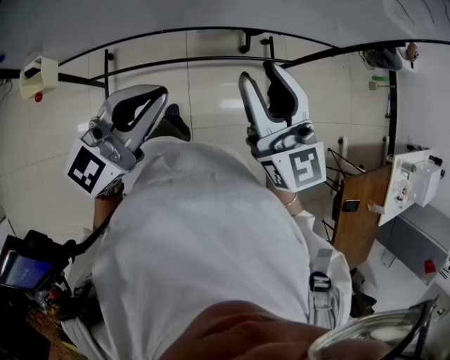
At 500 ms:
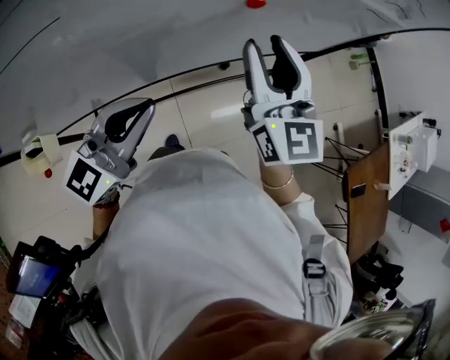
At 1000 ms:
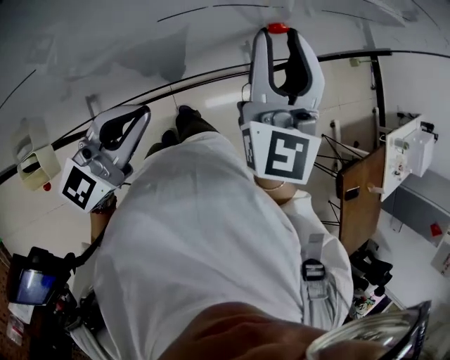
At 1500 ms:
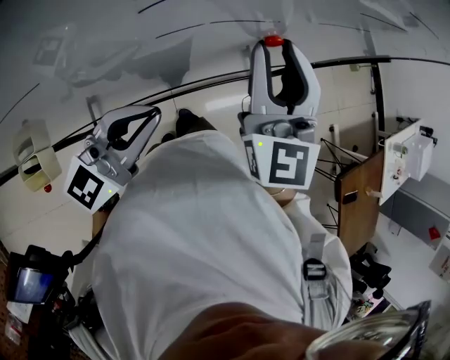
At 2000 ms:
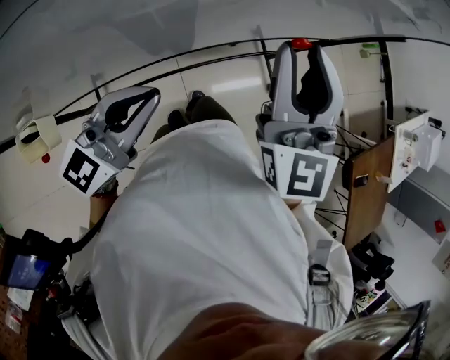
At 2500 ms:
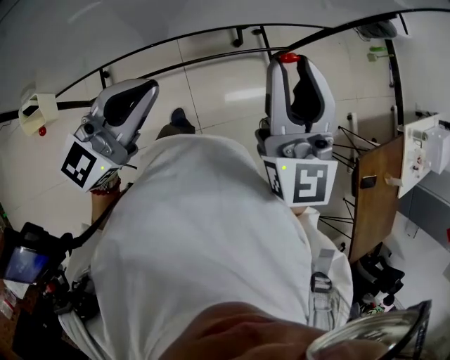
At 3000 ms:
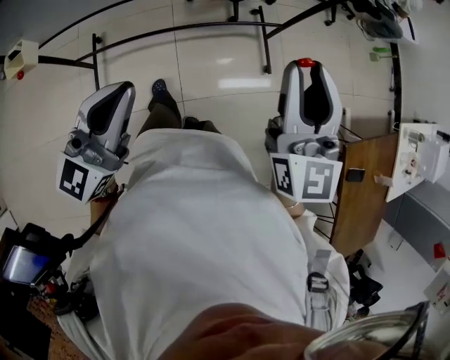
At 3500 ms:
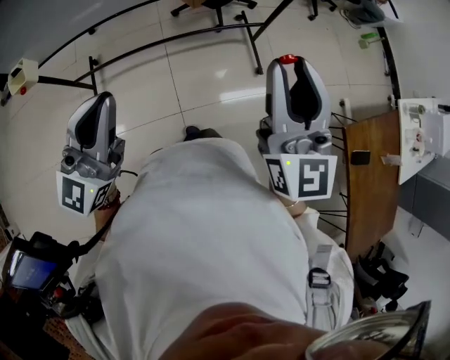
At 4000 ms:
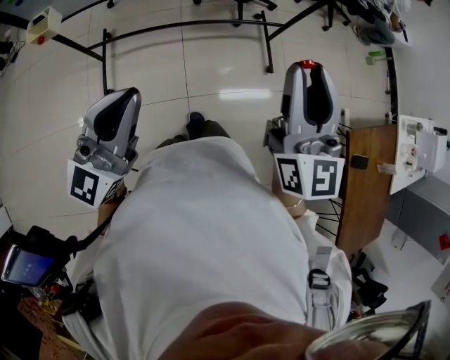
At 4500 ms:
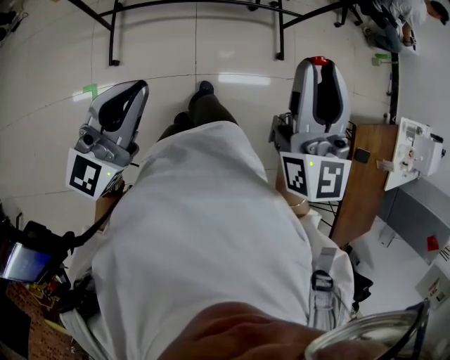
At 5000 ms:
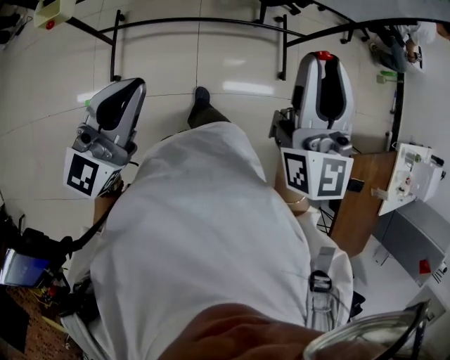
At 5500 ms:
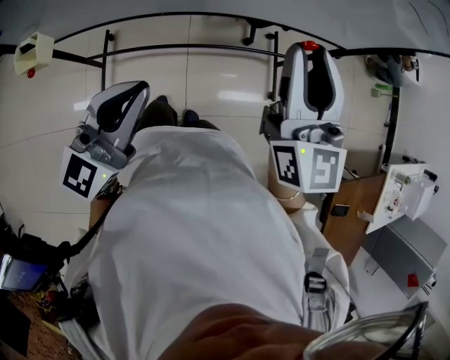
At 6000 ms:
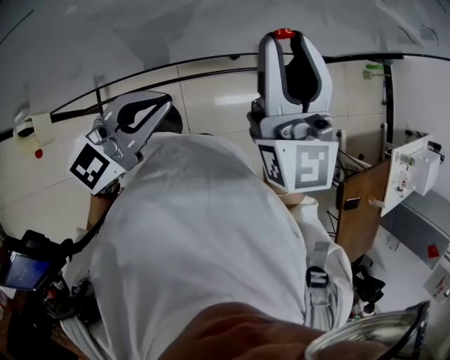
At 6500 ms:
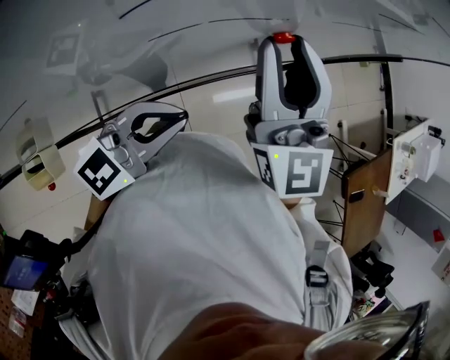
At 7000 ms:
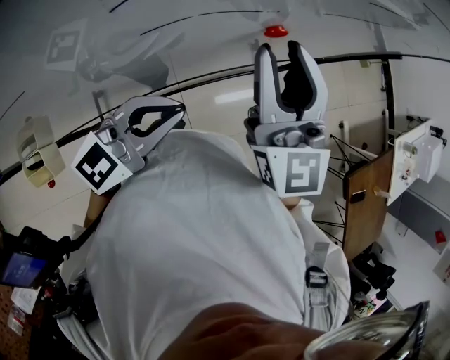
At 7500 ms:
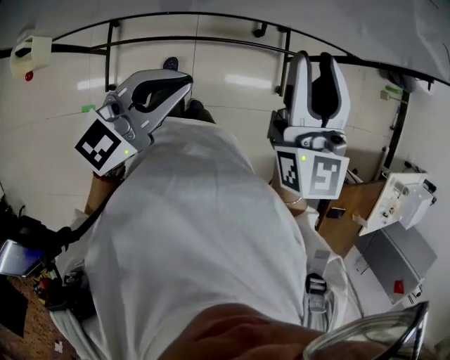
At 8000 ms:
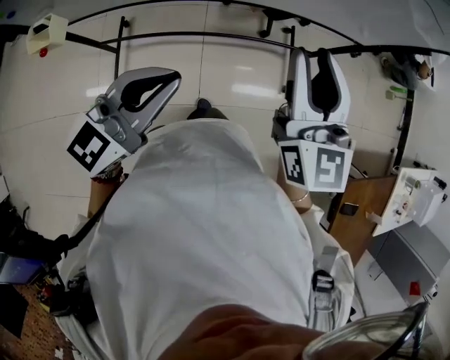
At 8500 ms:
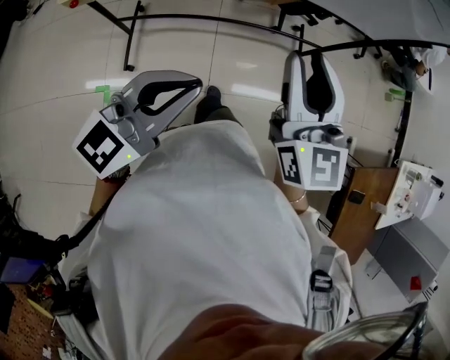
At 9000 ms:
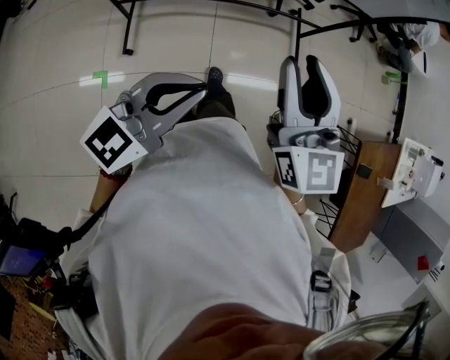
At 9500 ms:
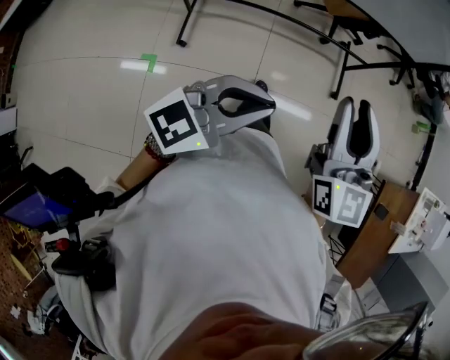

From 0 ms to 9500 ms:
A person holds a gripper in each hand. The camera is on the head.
From 0 ms to 2000 ms: The left gripper goes about 10 cm to the left and forward; the right gripper heads forward, upward and to the left, covering roughly 10 cm, and swivels roughly 30 degrees.
From 2000 ms to 4000 ms: The two grippers go about 35 cm backward and to the right. The left gripper turns by approximately 30 degrees.
From 4000 ms to 5500 ms: The grippers both shift forward by roughly 25 cm.
From 5500 ms to 7500 ms: The left gripper goes approximately 10 cm forward. Meanwhile the right gripper is displaced forward by roughly 5 cm.
From 7500 ms to 9500 ms: Both grippers travel together backward, about 40 cm.

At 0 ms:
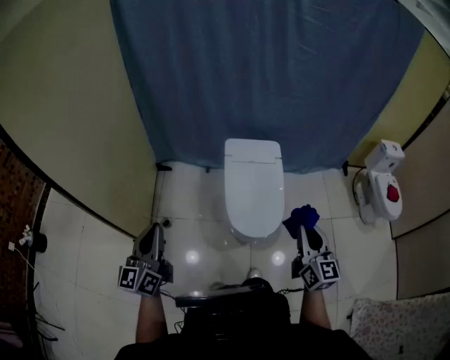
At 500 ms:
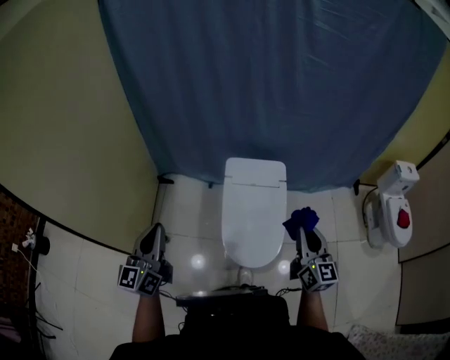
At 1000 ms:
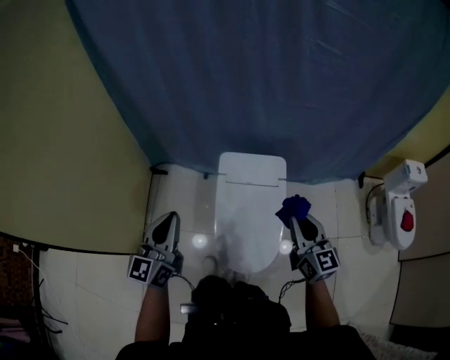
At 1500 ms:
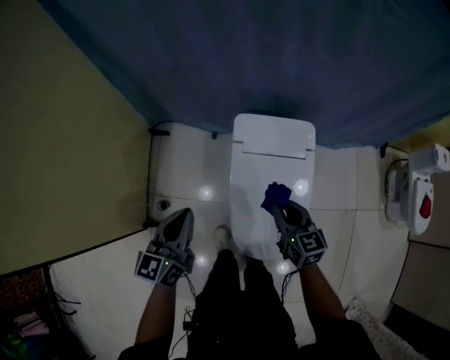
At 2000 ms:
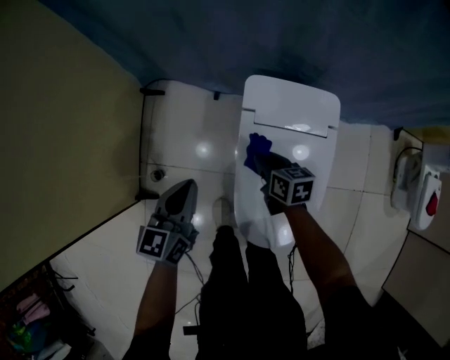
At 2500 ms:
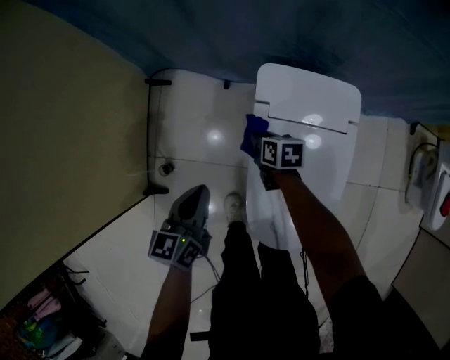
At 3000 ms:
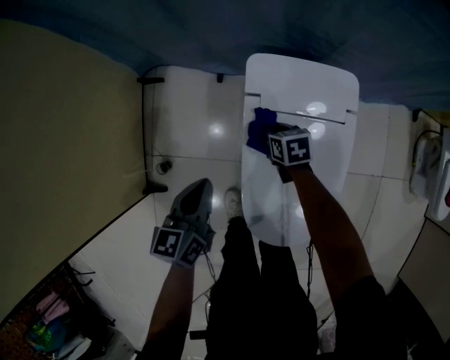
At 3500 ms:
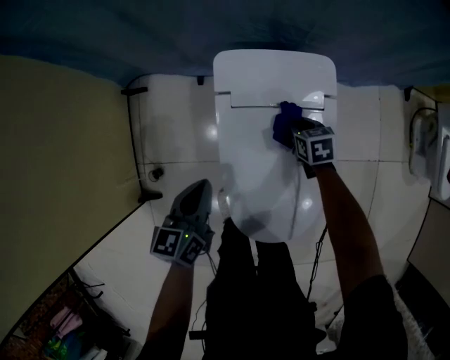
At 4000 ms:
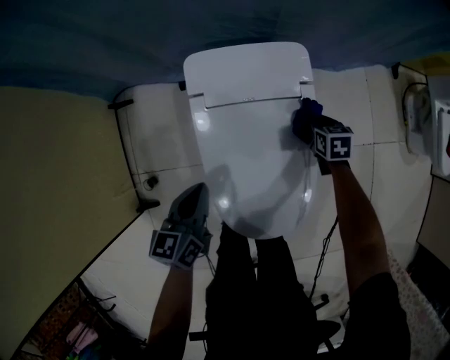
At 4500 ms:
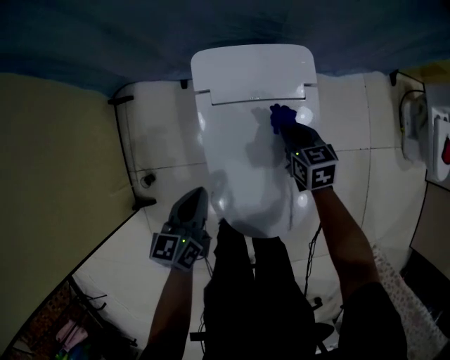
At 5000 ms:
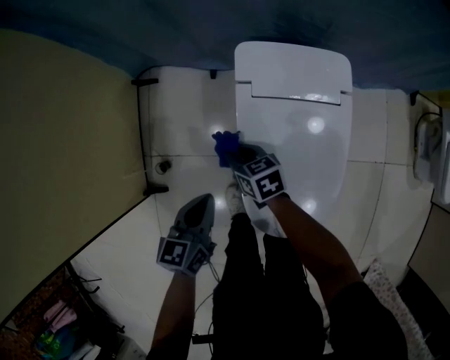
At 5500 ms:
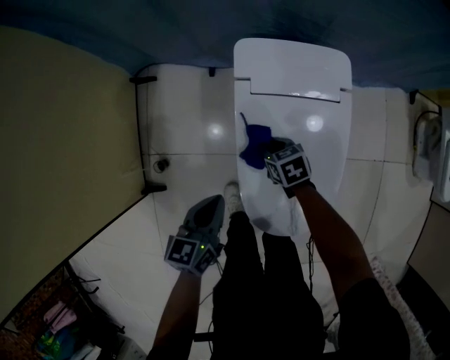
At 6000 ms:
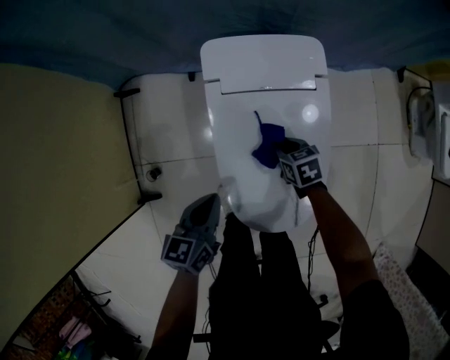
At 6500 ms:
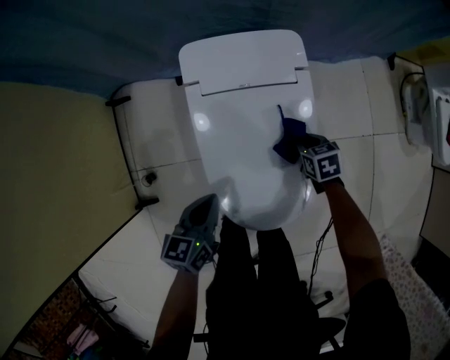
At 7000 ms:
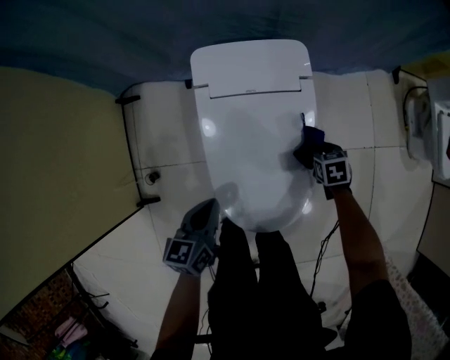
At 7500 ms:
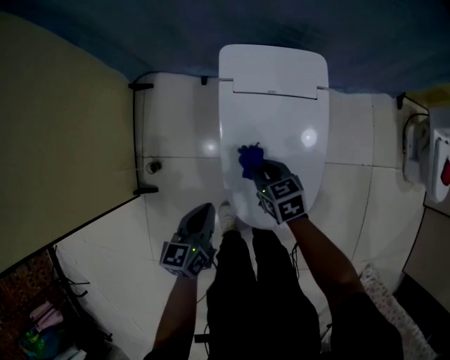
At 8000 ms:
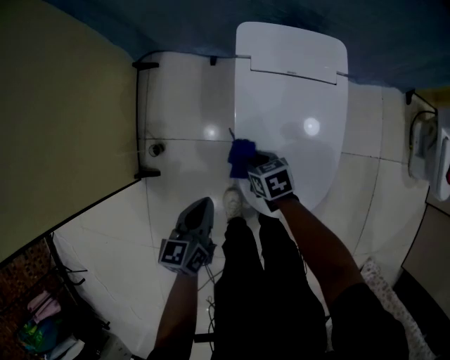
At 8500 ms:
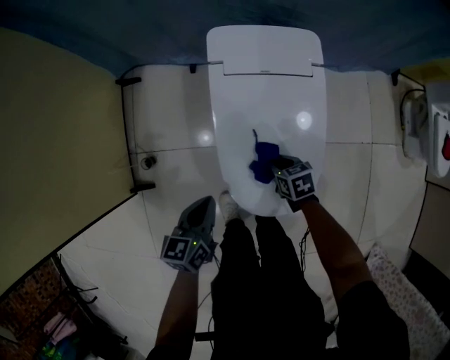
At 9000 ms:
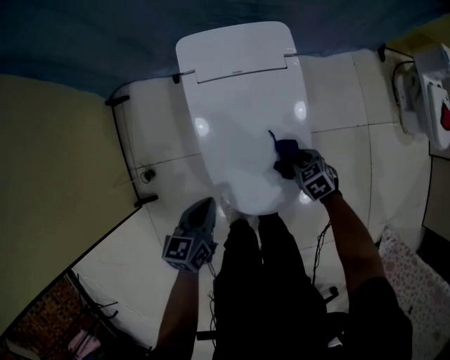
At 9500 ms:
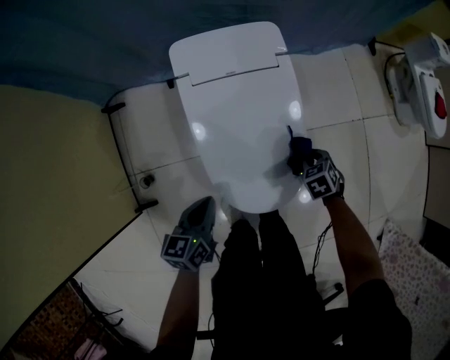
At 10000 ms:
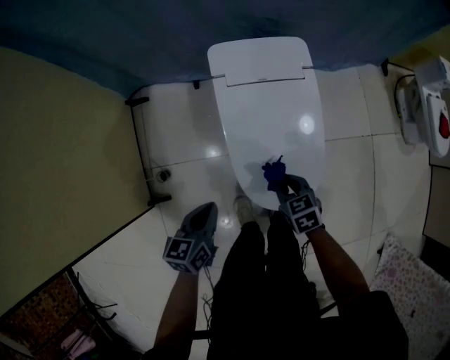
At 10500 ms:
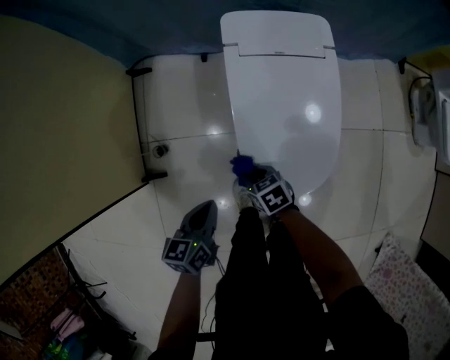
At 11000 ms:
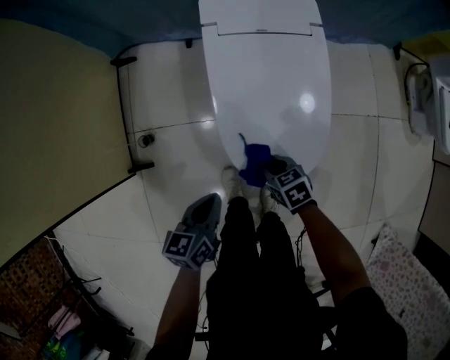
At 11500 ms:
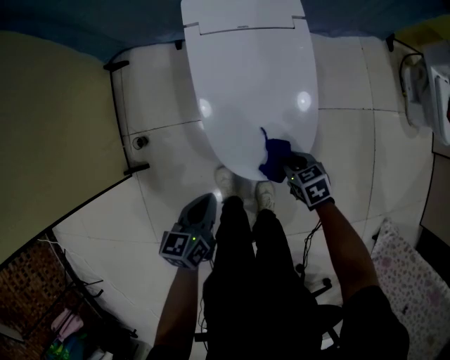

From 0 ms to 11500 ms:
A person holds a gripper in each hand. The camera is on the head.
From 0 ms to 2000 ms: Both grippers are carried forward, about 40 cm. Both grippers travel together downward, approximately 35 cm. The right gripper tilts its fingers approximately 40 degrees downward; the left gripper points its fingers some 30 degrees further downward.
From 2000 ms to 4000 ms: The right gripper moves about 35 cm, and turns by about 30 degrees, while the left gripper moves approximately 15 cm.
From 4000 ms to 6000 ms: The left gripper shifts by roughly 10 cm; the right gripper travels upward and back again, roughly 10 cm each way.
From 6000 ms to 7500 ms: The left gripper shifts approximately 10 cm backward. The right gripper goes about 10 cm upward and backward, and goes to the right and returns, roughly 20 cm each way.
From 7500 ms to 9500 ms: The right gripper ends up approximately 25 cm from where it was, and swivels approximately 40 degrees. The left gripper moves approximately 5 cm.
From 9500 ms to 11500 ms: The right gripper moves approximately 10 cm upward and comes back, and turns by about 30 degrees. The left gripper moves about 15 cm.

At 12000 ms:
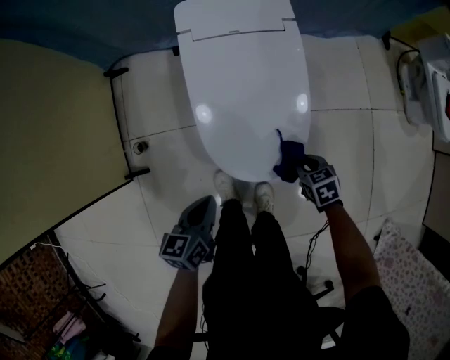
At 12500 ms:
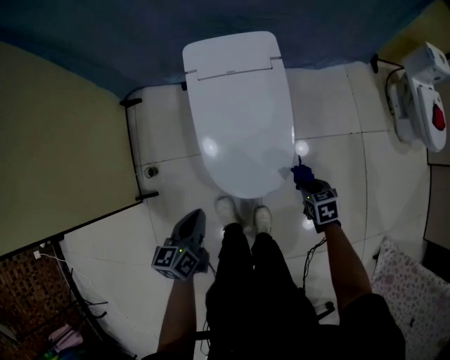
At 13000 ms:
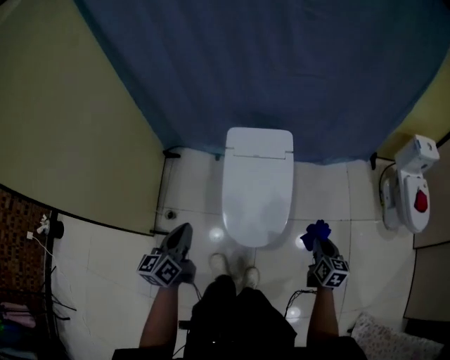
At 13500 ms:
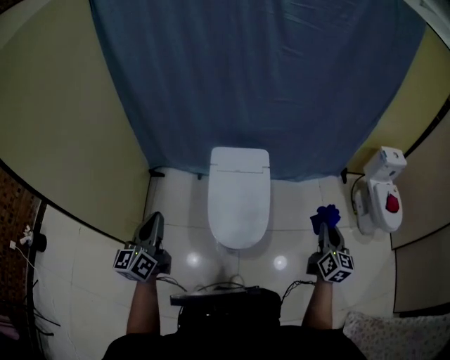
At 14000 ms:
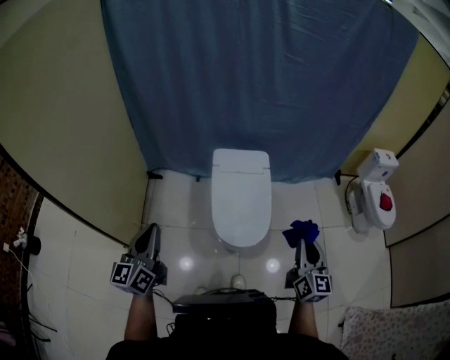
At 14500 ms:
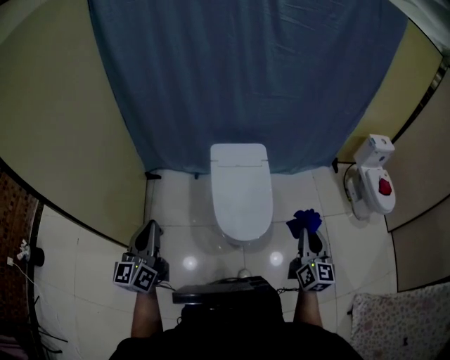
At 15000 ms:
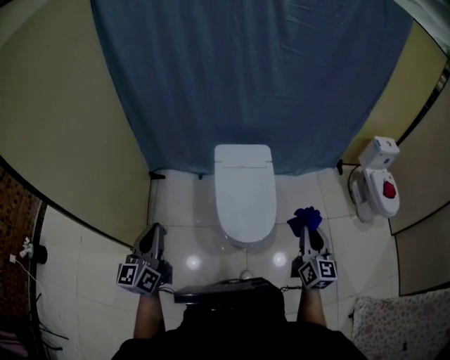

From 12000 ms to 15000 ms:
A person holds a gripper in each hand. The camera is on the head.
From 12000 ms to 13500 ms: Both grippers travel together upward, some 50 cm. The left gripper tilts its fingers roughly 40 degrees upward. Meanwhile the right gripper points its fingers roughly 60 degrees further upward.
From 13500 ms to 15000 ms: The left gripper shifts about 10 cm to the left and backward. Meanwhile the right gripper heads to the left and backward, covering approximately 15 cm.

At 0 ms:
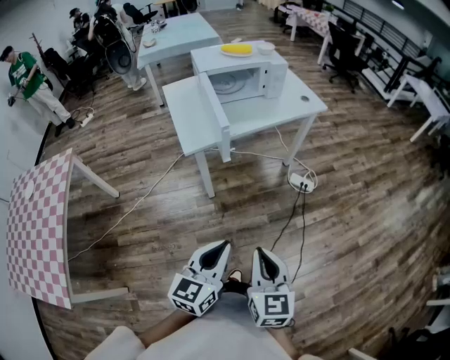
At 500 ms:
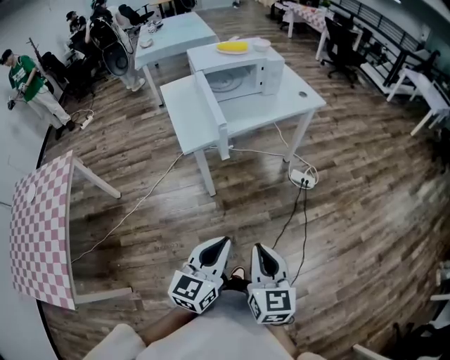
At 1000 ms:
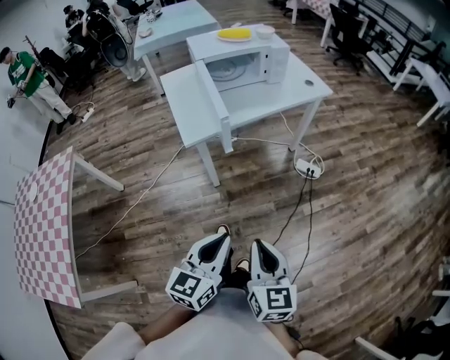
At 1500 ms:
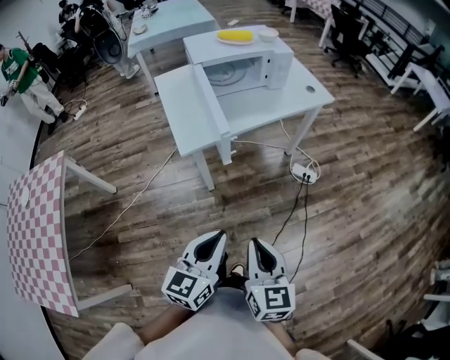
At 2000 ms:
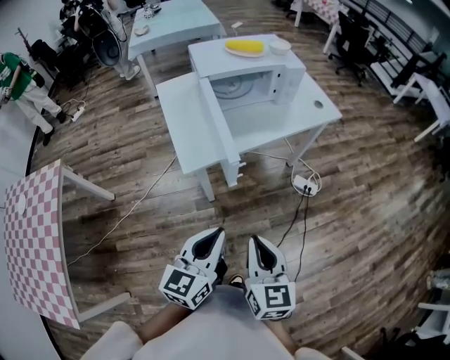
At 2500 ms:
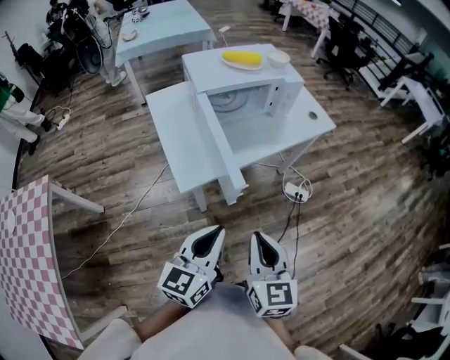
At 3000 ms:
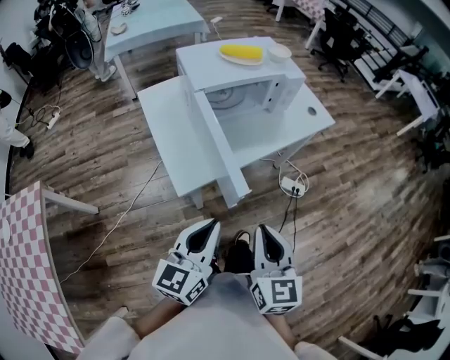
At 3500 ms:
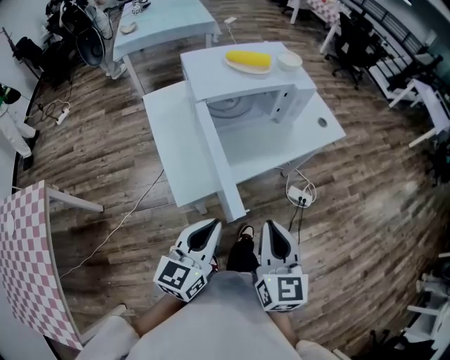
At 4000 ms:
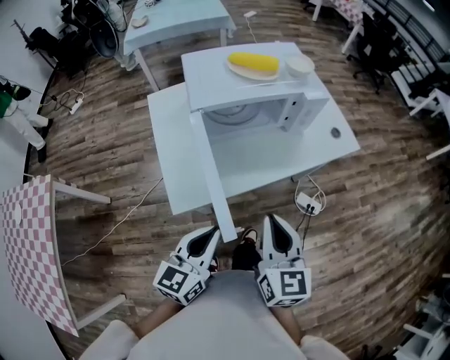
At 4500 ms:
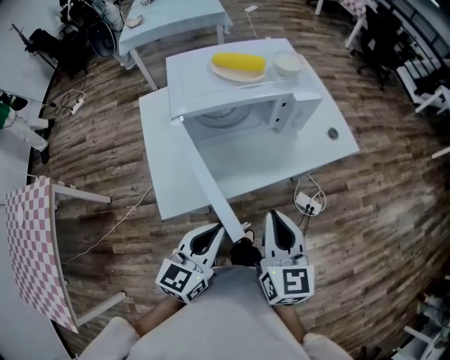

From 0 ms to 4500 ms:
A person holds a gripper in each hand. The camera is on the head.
From 0 ms to 2000 ms: The grippers both shift forward and to the left by about 20 cm.
From 2000 ms to 4500 ms: The grippers both shift forward by about 30 cm.
